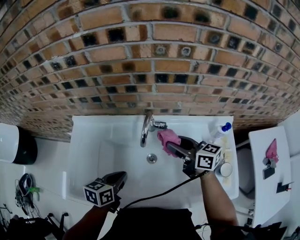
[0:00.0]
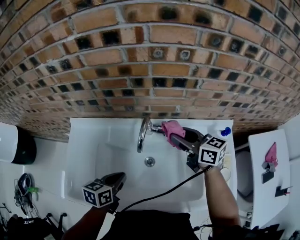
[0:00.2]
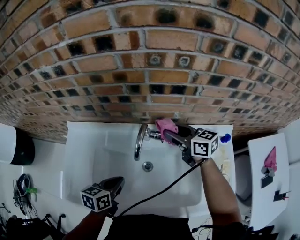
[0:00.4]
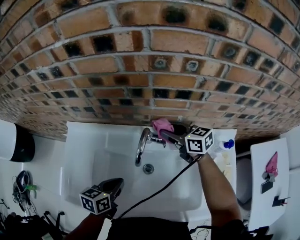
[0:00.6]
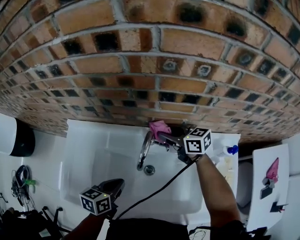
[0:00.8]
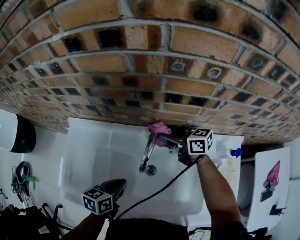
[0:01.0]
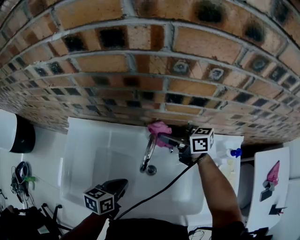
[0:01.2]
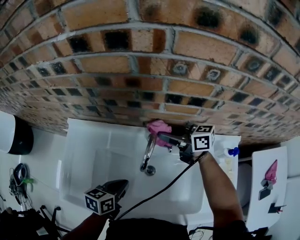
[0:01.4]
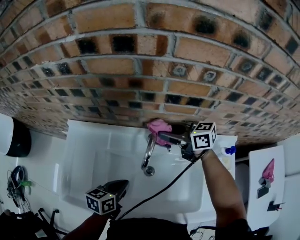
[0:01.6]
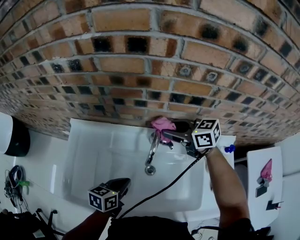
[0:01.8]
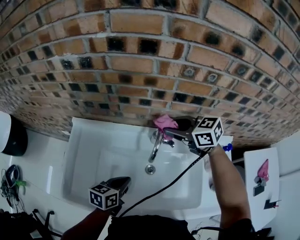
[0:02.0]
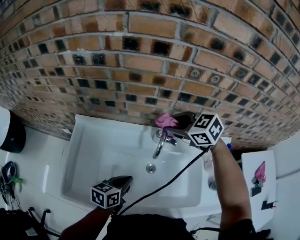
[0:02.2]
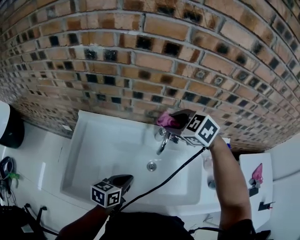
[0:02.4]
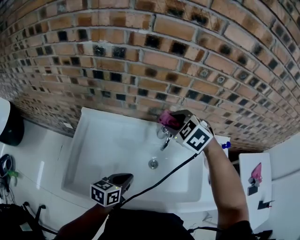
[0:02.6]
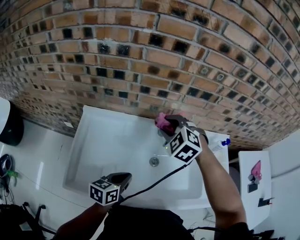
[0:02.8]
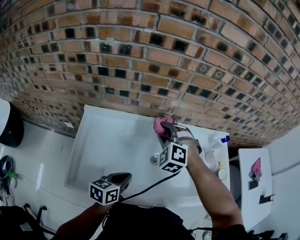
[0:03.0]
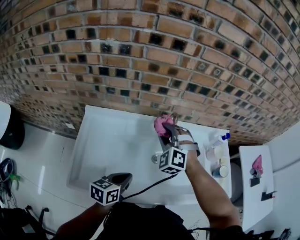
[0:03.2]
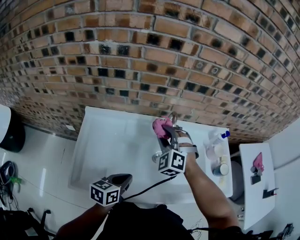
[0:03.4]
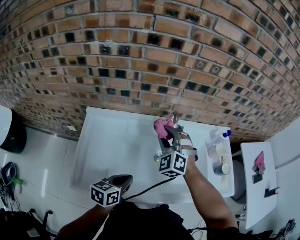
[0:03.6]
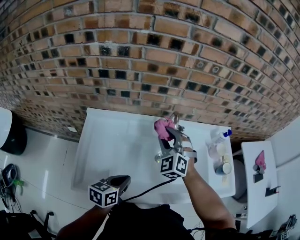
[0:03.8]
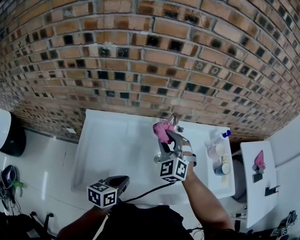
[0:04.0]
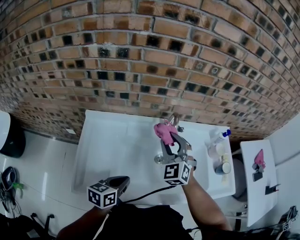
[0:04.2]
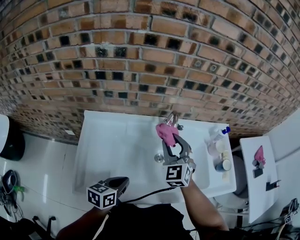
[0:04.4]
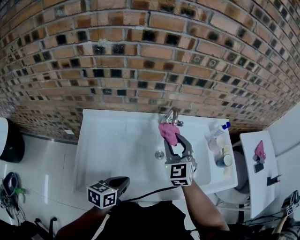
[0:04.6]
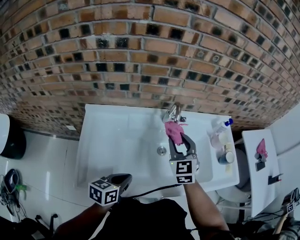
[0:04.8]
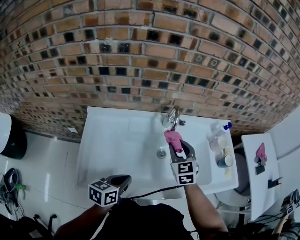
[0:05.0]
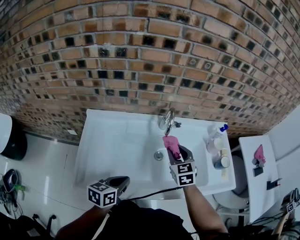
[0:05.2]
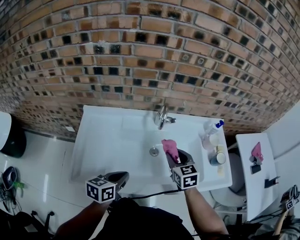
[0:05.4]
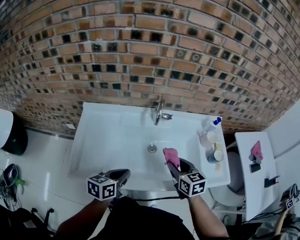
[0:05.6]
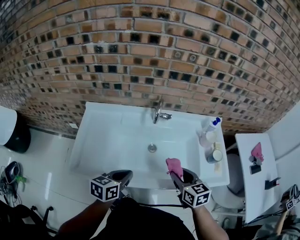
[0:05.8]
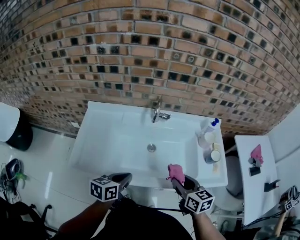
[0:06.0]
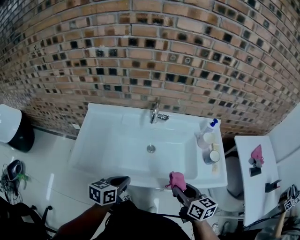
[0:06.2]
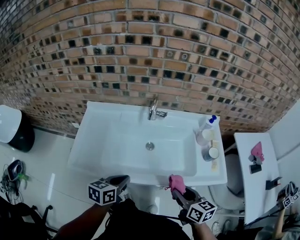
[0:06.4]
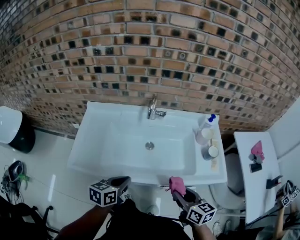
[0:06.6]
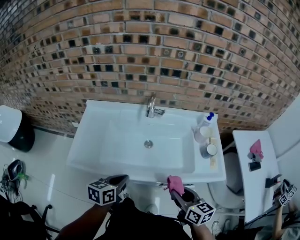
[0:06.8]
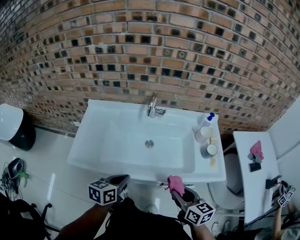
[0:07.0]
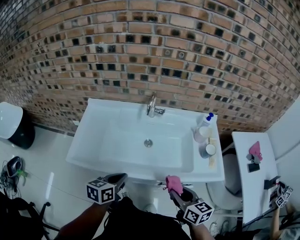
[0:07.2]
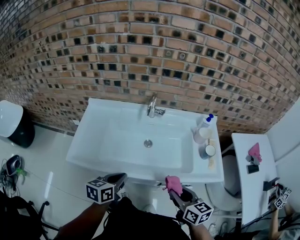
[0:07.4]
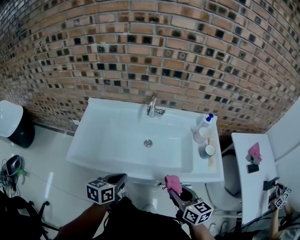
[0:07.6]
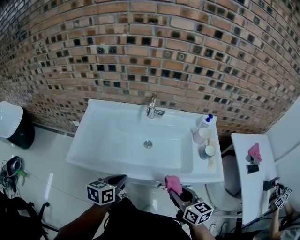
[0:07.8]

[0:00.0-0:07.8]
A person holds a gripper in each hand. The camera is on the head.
0:00.0 to 0:01.6: The left gripper ends up approximately 5 cm from where it was; the right gripper goes some 15 cm forward, and turns by roughly 20 degrees.
0:01.6 to 0:03.2: The right gripper moves roughly 15 cm, and turns by approximately 100 degrees. Meanwhile the left gripper shifts by about 10 cm.
0:03.2 to 0:04.6: The right gripper ends up approximately 5 cm from where it was, and rolls clockwise, seen from behind, by roughly 40 degrees.
0:04.6 to 0:06.2: The left gripper is displaced to the right and backward by some 15 cm. The right gripper is displaced backward and to the right by roughly 30 cm, and rotates around the line of its fingers by about 50 degrees, clockwise from behind.
0:06.2 to 0:07.8: The right gripper travels backward by approximately 5 cm.

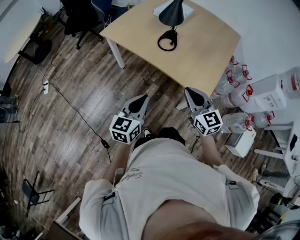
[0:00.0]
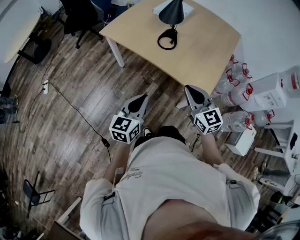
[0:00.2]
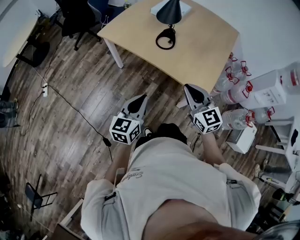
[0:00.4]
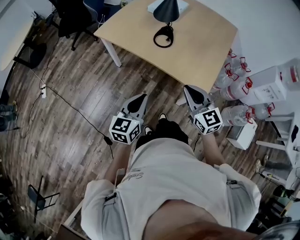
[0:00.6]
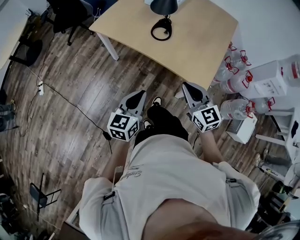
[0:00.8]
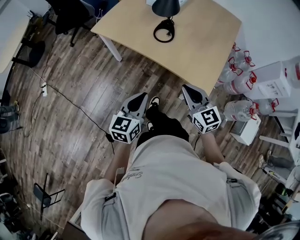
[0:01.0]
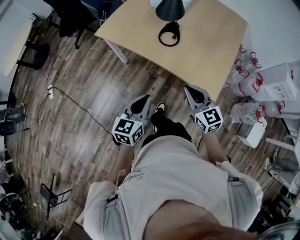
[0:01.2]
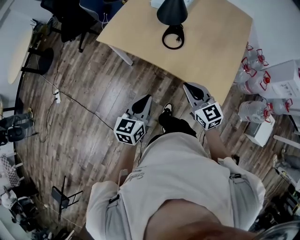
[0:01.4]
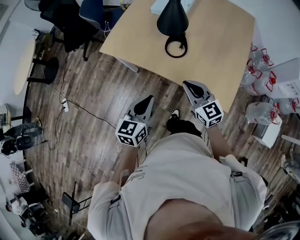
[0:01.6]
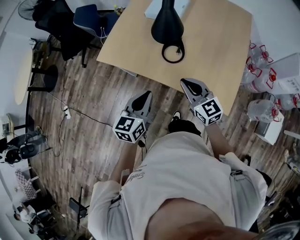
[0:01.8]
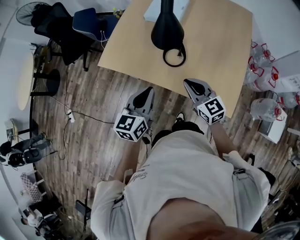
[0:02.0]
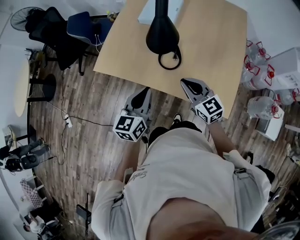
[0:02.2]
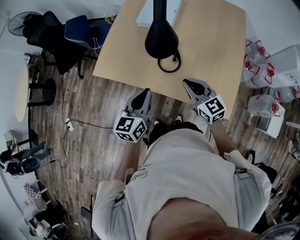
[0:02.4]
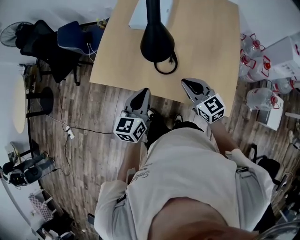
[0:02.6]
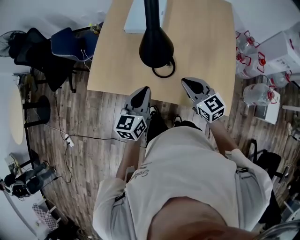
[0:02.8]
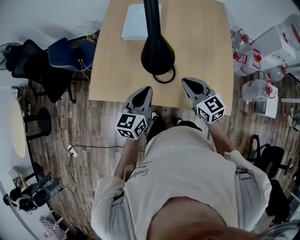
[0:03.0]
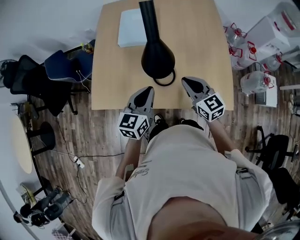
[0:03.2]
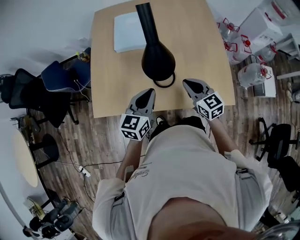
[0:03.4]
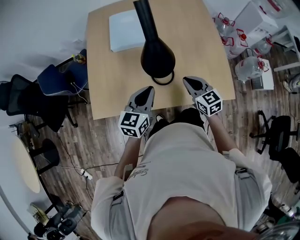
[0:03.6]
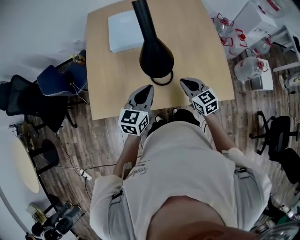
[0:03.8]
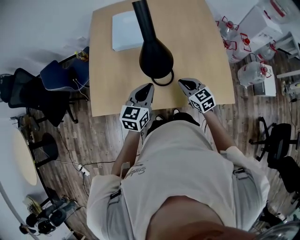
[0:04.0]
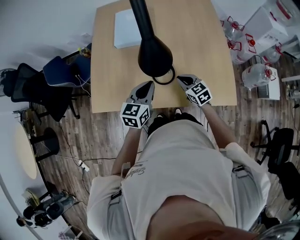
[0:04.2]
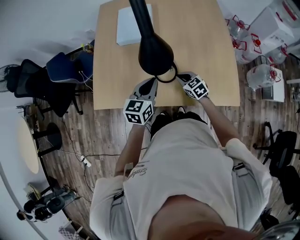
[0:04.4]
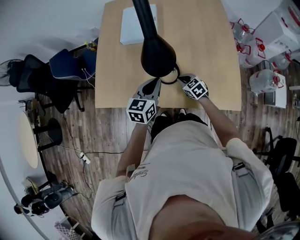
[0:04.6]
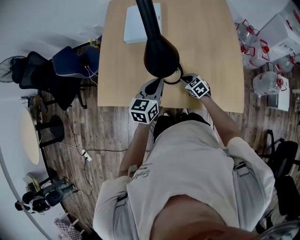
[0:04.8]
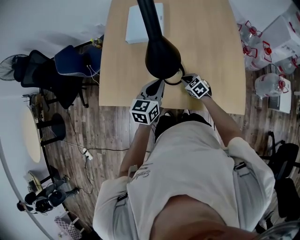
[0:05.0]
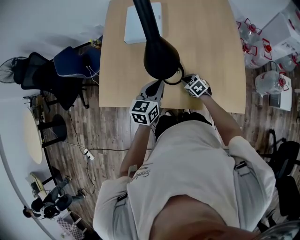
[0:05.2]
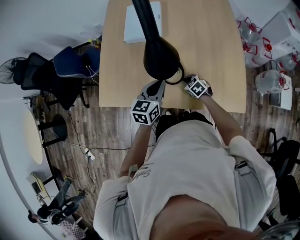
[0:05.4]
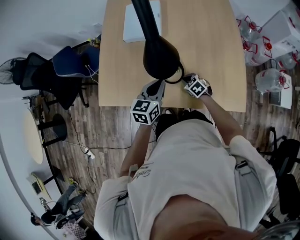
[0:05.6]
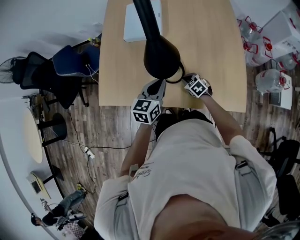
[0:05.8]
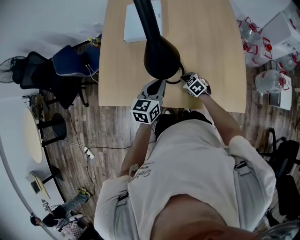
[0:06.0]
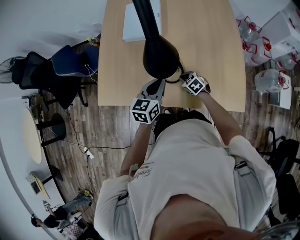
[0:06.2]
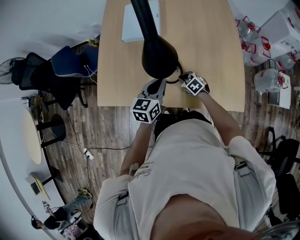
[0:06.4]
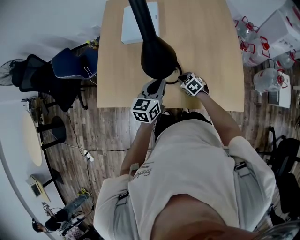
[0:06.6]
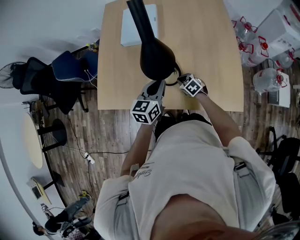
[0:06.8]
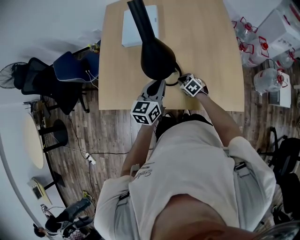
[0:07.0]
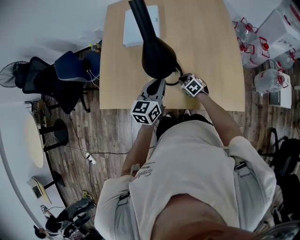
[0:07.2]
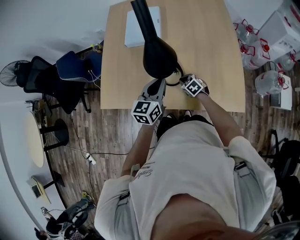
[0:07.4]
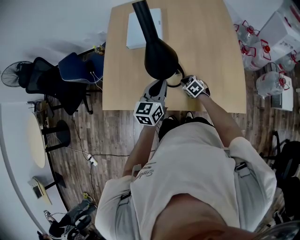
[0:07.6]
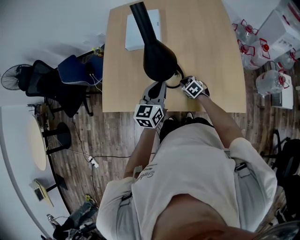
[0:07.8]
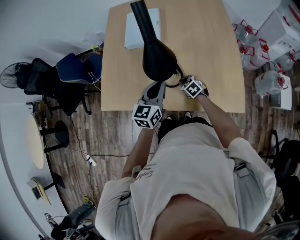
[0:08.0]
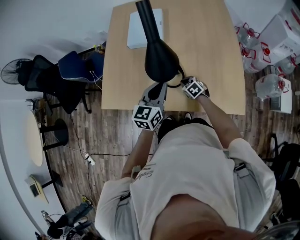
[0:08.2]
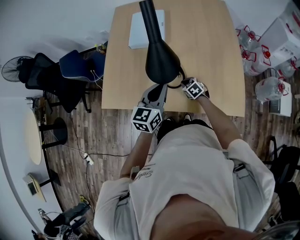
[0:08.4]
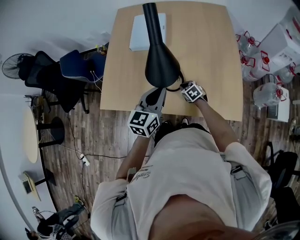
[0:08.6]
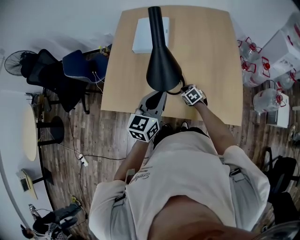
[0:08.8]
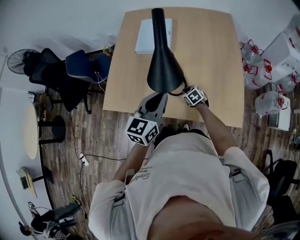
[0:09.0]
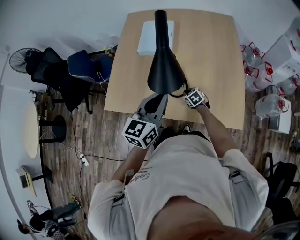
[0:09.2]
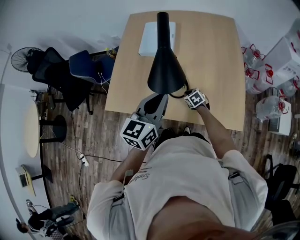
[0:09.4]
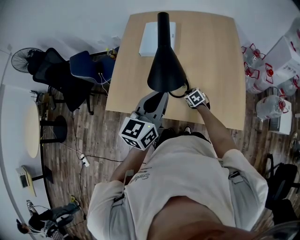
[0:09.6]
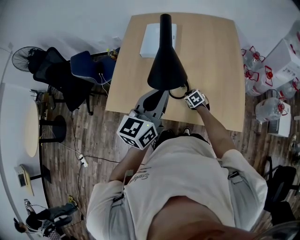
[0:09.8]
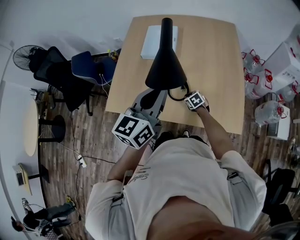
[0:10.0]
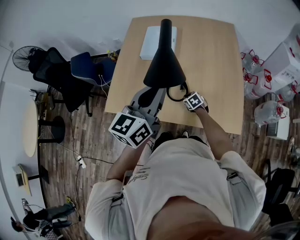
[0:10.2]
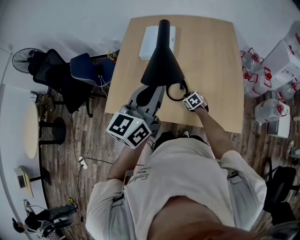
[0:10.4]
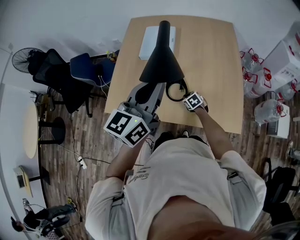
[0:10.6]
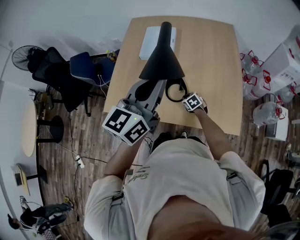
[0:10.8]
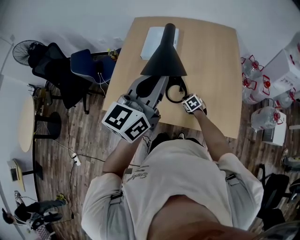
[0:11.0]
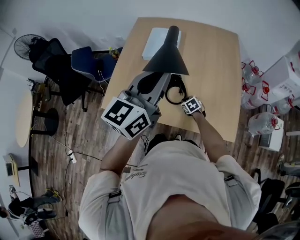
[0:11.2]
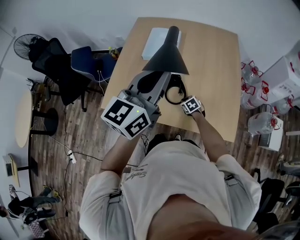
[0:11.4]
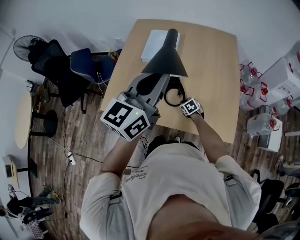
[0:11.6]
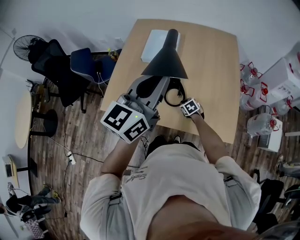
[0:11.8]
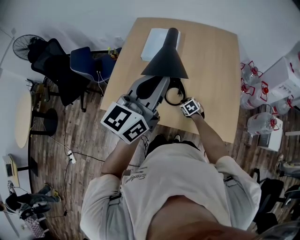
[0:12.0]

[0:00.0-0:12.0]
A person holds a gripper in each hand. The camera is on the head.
0:00.0 to 0:01.6: Both grippers travel together forward, roughly 20 cm.
0:01.6 to 0:03.0: The two grippers go some 20 cm forward.
0:03.0 to 0:04.4: The left gripper moves downward and forward, some 10 cm. Meanwhile the right gripper goes some 20 cm downward, and swivels about 20 degrees.
0:04.4 to 0:06.0: The right gripper heads downward, covering some 5 cm.
0:06.0 to 0:07.6: There are only small adjustments of the grippers.
0:07.6 to 0:09.0: The left gripper travels upward and backward by some 10 cm.
0:09.0 to 0:10.4: The left gripper travels upward by some 15 cm.
0:10.4 to 0:12.0: The left gripper is displaced upward by some 5 cm.

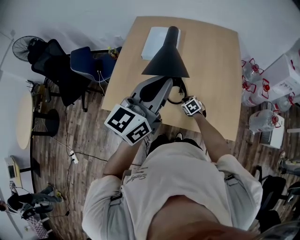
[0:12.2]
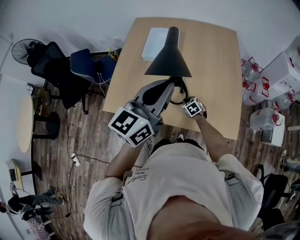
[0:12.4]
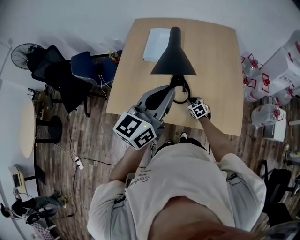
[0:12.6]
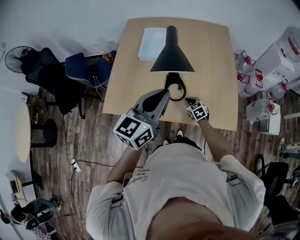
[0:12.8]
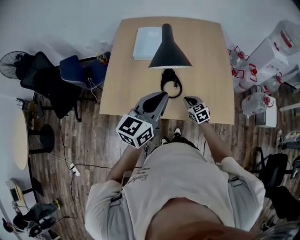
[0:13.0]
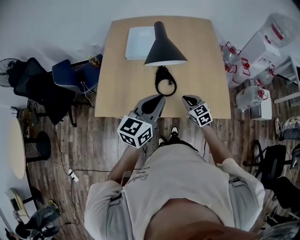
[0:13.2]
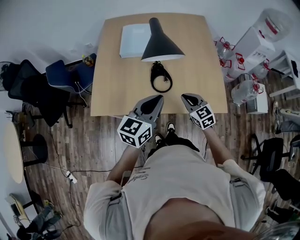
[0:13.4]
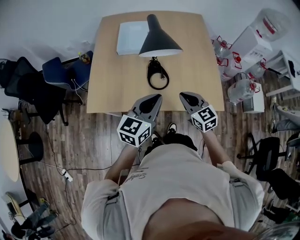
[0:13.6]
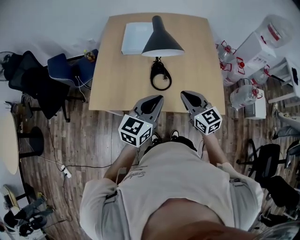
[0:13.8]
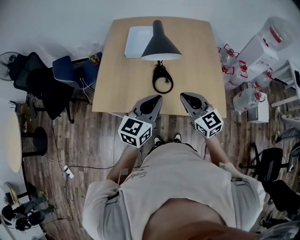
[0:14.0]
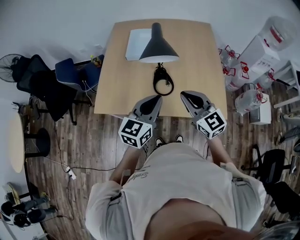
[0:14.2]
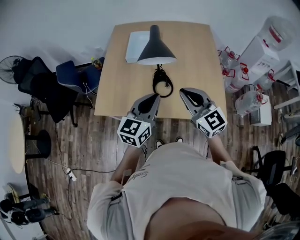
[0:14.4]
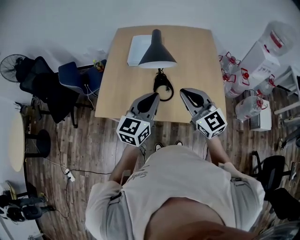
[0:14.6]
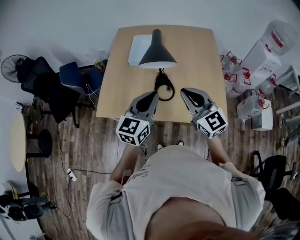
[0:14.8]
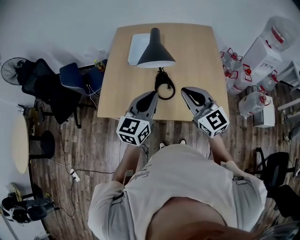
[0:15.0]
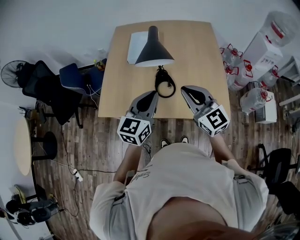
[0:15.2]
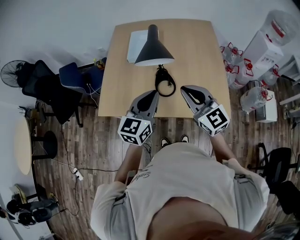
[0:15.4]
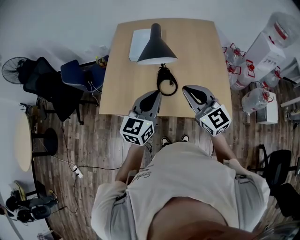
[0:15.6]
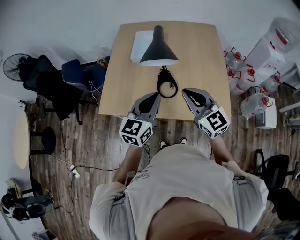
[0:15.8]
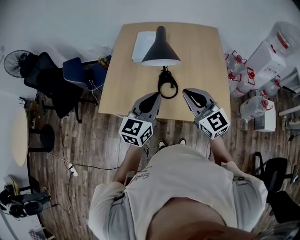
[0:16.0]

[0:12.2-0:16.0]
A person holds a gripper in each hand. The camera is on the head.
0:12.2 to 0:13.4: The right gripper is displaced upward and backward by approximately 25 cm, and swivels approximately 30 degrees. The left gripper shifts about 15 cm downward and backward.
0:13.4 to 0:14.8: The left gripper is displaced upward by roughly 5 cm, while the right gripper is displaced upward by roughly 20 cm, and rotates about 30 degrees.
0:14.8 to 0:16.0: There are only small adjustments of the grippers.
